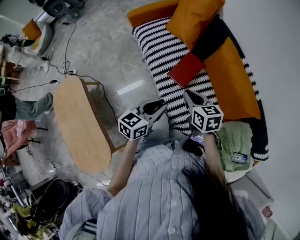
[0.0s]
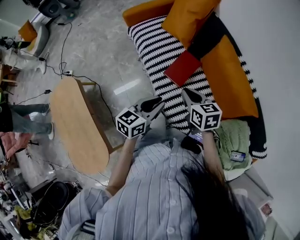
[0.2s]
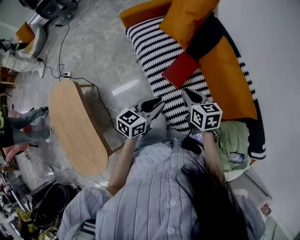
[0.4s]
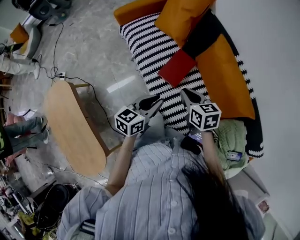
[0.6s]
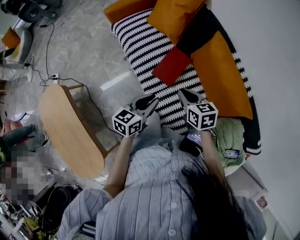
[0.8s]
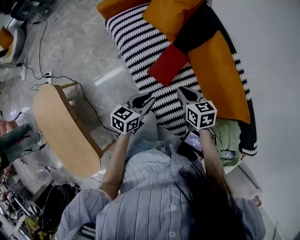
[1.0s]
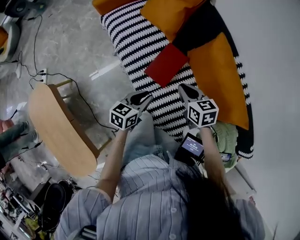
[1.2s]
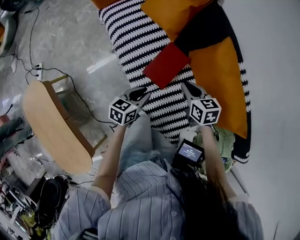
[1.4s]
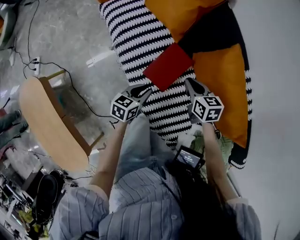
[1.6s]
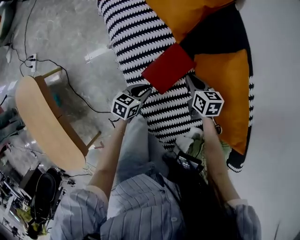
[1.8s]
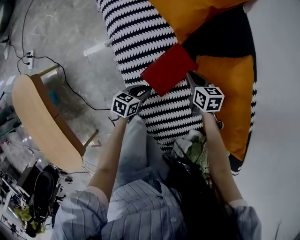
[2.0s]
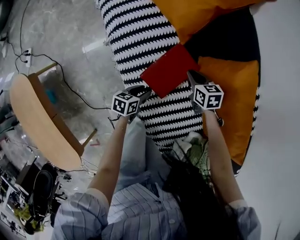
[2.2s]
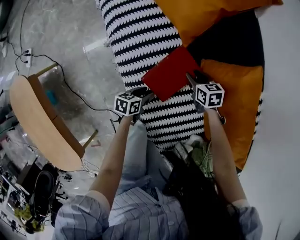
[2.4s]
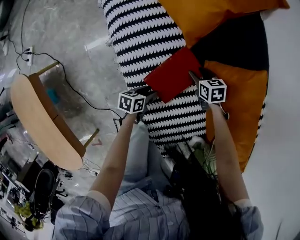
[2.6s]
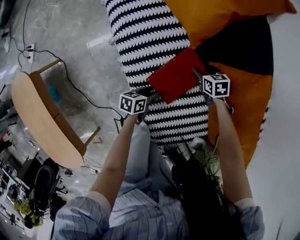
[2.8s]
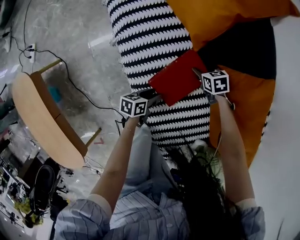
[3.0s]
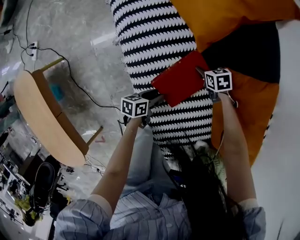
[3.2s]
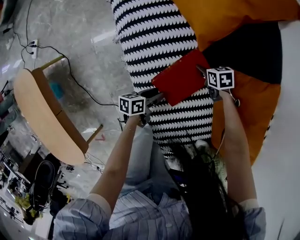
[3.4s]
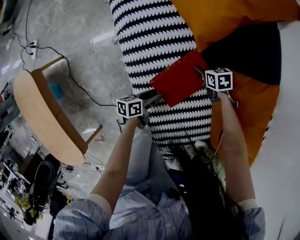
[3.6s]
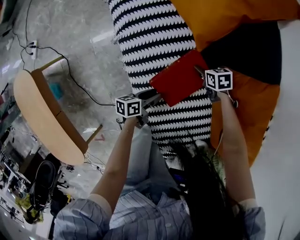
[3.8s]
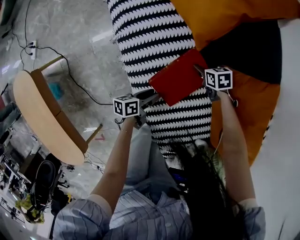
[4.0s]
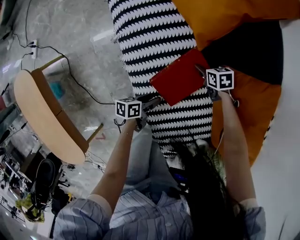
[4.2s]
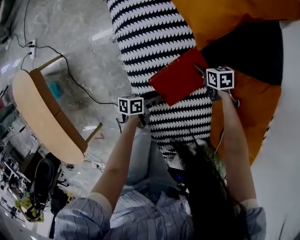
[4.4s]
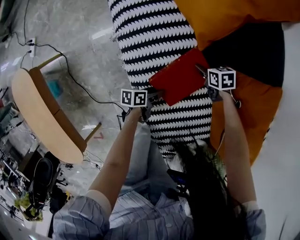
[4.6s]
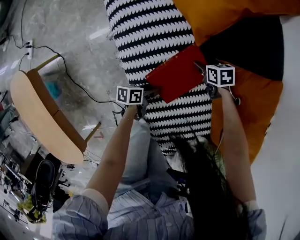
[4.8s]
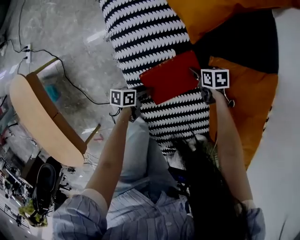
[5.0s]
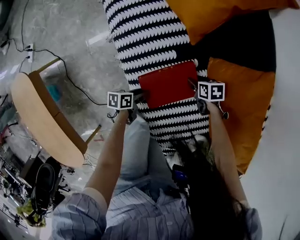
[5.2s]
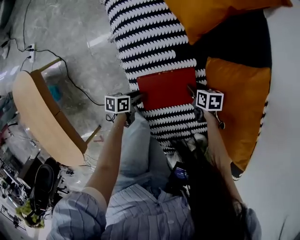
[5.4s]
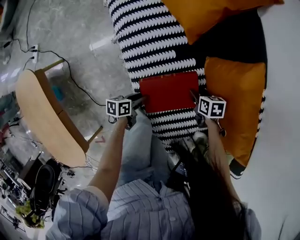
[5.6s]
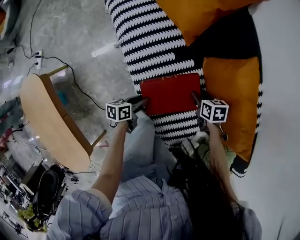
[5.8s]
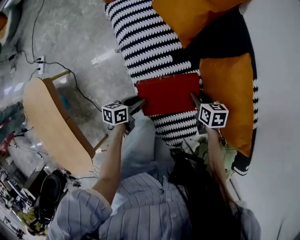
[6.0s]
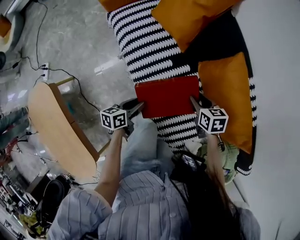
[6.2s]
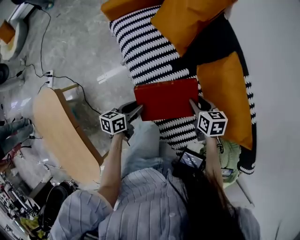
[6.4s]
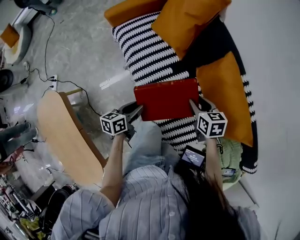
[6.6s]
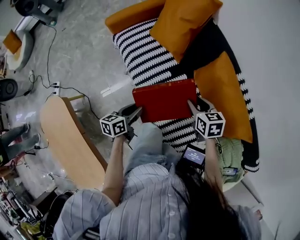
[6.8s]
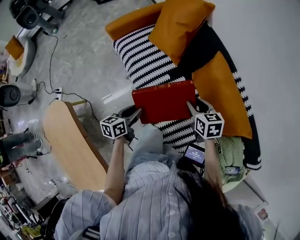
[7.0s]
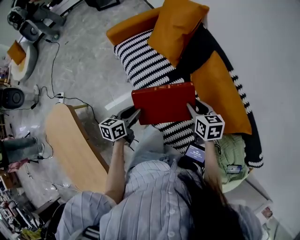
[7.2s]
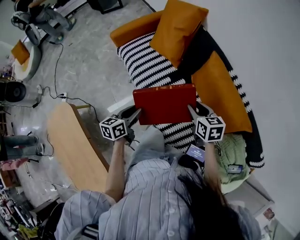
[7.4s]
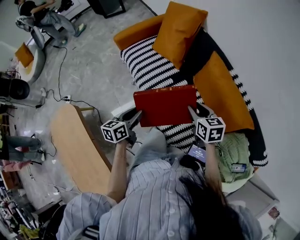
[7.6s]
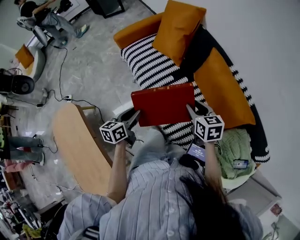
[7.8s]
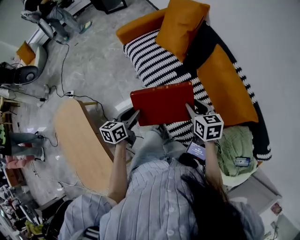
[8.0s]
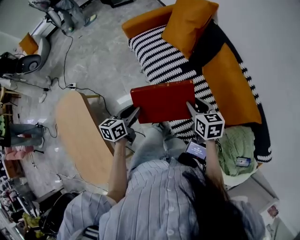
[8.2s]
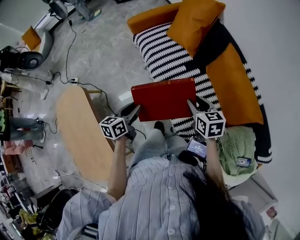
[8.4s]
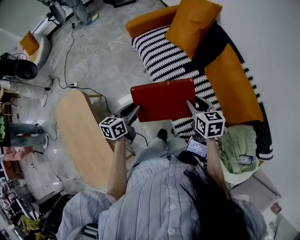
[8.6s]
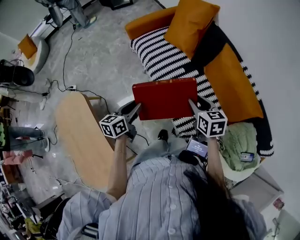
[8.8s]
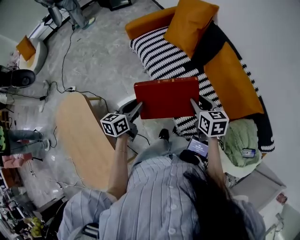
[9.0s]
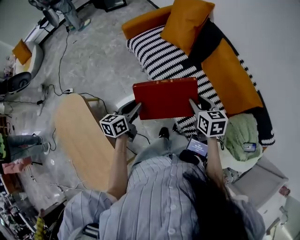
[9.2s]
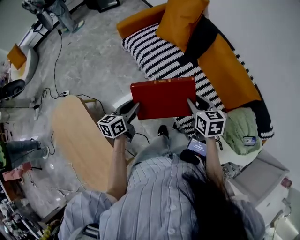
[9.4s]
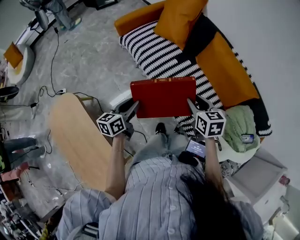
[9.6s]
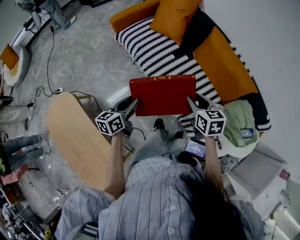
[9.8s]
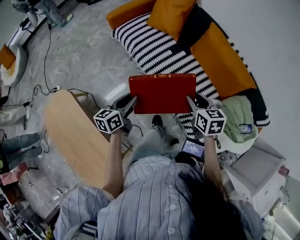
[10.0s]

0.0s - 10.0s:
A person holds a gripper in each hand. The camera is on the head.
0.0s - 1.4s: The left gripper heads downward and forward, covering roughly 25 cm. The right gripper is displaced forward and downward by approximately 25 cm.
1.4s - 2.8s: The right gripper travels downward and forward by approximately 30 cm, turns by approximately 20 degrees, and opens its fingers. Meanwhile the left gripper heads downward, covering roughly 25 cm, swivels some 30 degrees, and opens.
2.8s - 4.2s: The grippers stay close to where they were, moving slightly.
4.2s - 5.8s: The left gripper heads upward, covering some 10 cm. The right gripper ends up approximately 20 cm from where it was.
5.8s - 7.2s: Both grippers travel together upward, about 25 cm. The left gripper rotates roughly 30 degrees; the right gripper turns by roughly 30 degrees.
7.2s - 8.6s: Both grippers move backward and to the left, about 15 cm.
8.6s - 10.0s: The right gripper goes approximately 10 cm backward; the left gripper shifts by some 5 cm.

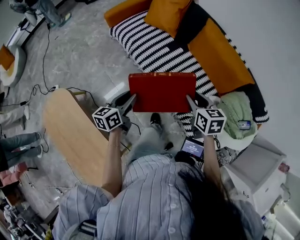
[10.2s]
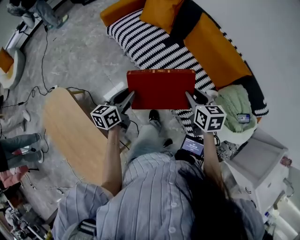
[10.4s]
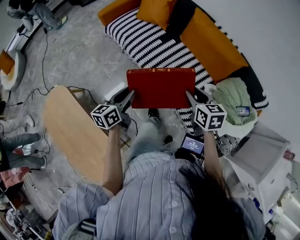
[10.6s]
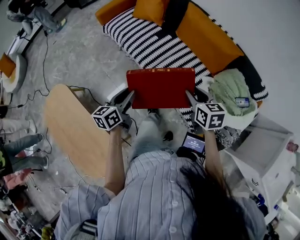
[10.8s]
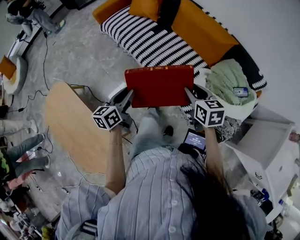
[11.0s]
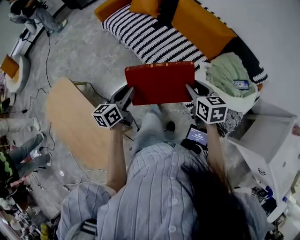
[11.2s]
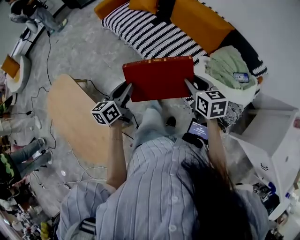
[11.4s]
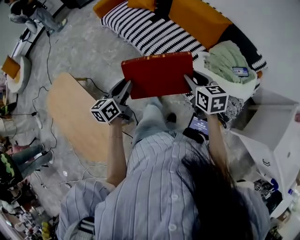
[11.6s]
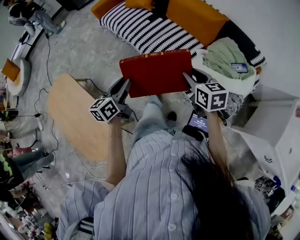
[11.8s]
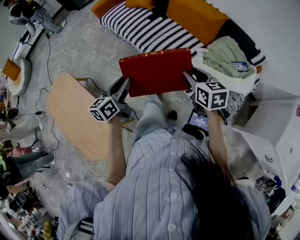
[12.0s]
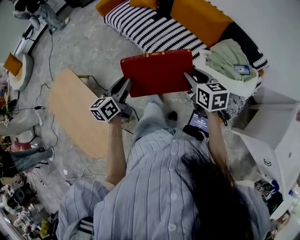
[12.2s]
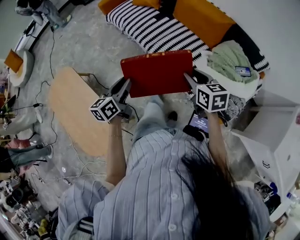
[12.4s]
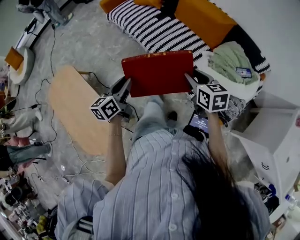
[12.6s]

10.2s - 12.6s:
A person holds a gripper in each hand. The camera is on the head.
10.2s - 11.4s: Both grippers move backward and to the right, about 25 cm.
11.4s - 12.6s: The grippers move only a little.

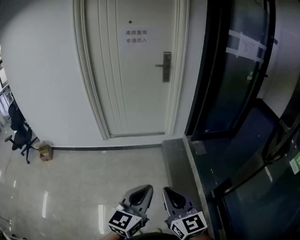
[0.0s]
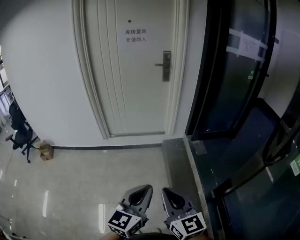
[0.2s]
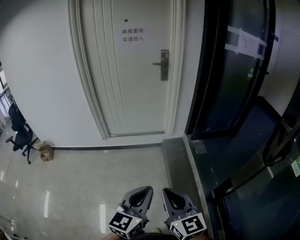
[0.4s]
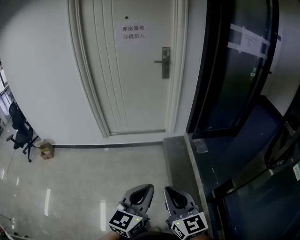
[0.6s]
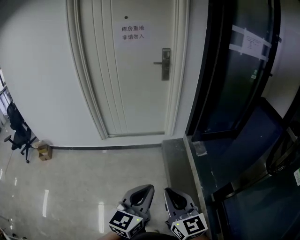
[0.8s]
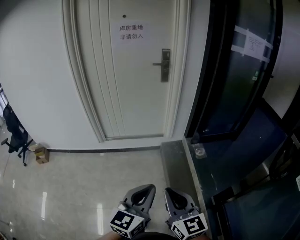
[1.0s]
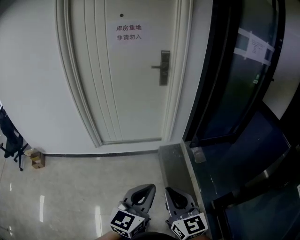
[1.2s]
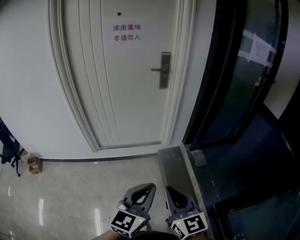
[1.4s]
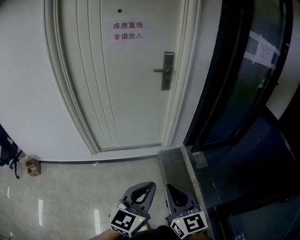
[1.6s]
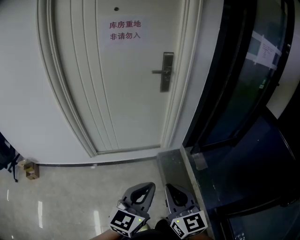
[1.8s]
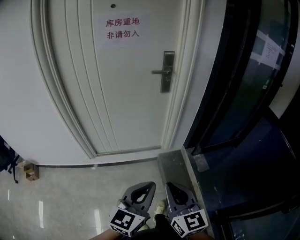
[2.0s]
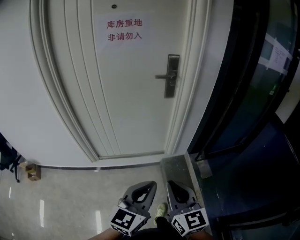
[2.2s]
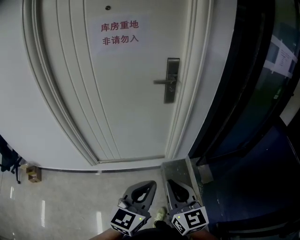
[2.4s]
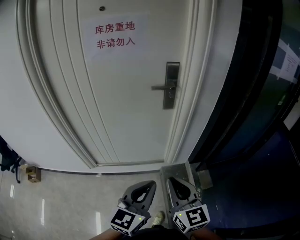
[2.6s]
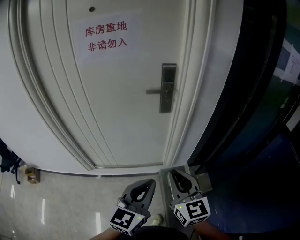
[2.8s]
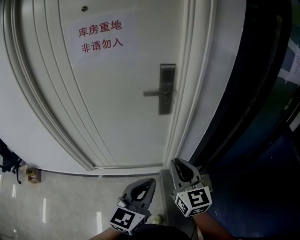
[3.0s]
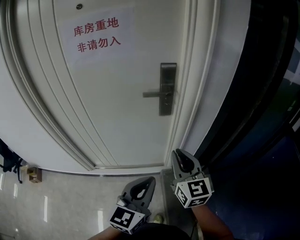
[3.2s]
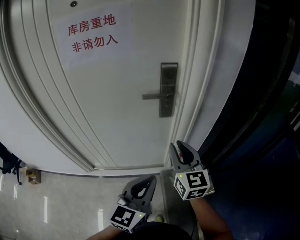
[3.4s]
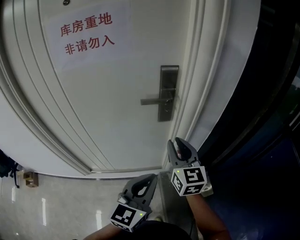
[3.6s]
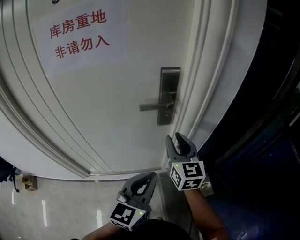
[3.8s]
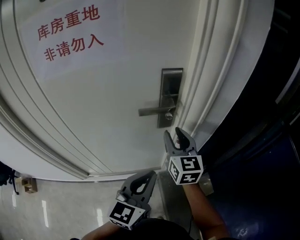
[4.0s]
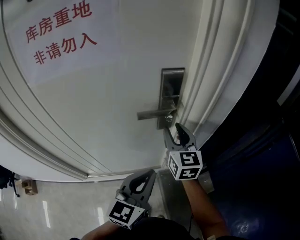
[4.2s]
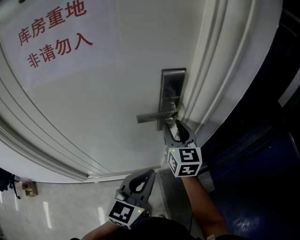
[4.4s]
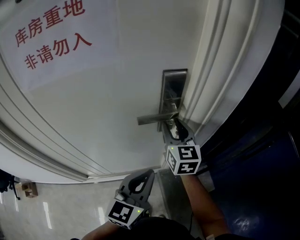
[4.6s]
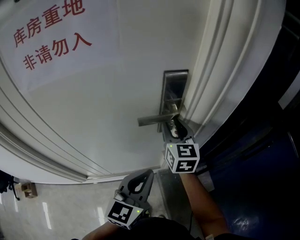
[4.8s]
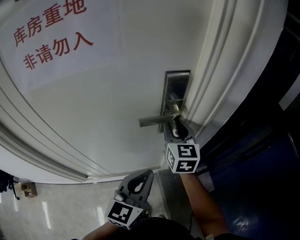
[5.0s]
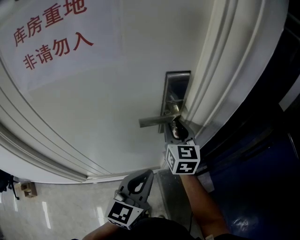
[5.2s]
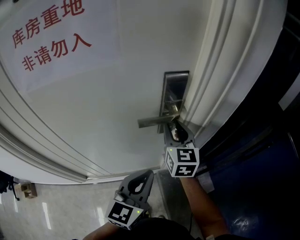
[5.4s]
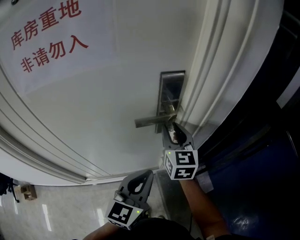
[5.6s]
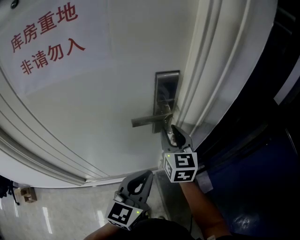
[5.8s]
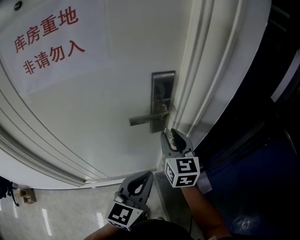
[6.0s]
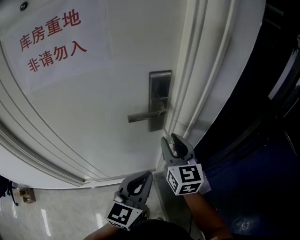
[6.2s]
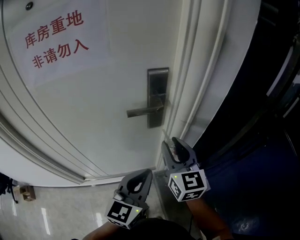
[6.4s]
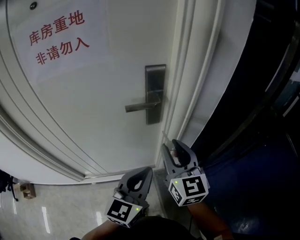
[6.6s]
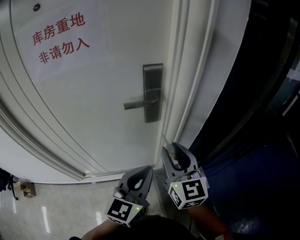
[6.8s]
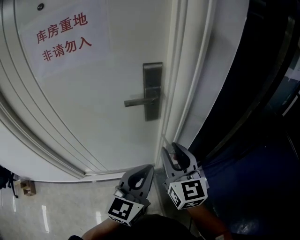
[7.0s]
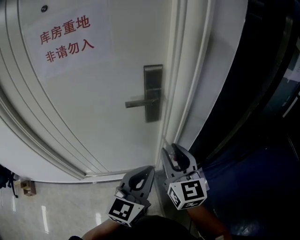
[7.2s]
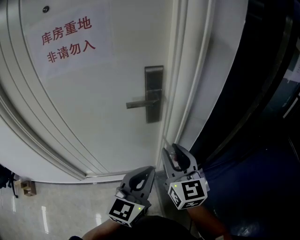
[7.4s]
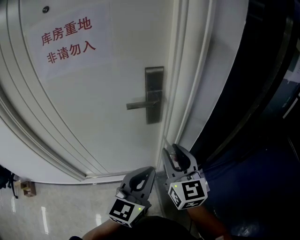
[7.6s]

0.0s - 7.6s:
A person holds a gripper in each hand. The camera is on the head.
0.0s - 1.6s: The grippers both shift forward by about 30 cm.
1.6s - 3.0s: The grippers both shift forward by roughly 35 cm.
3.0s - 4.6s: Both grippers travel together forward, approximately 30 cm. The right gripper opens up.
4.6s - 6.0s: The right gripper ends up approximately 5 cm from where it was.
6.0s - 7.6s: The left gripper travels backward by some 5 cm. The right gripper shifts some 15 cm backward.

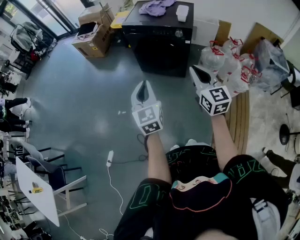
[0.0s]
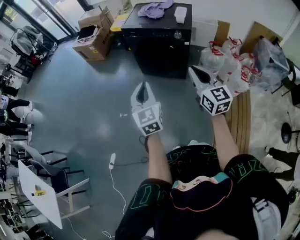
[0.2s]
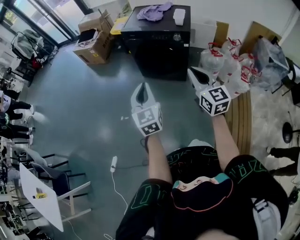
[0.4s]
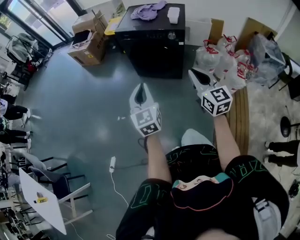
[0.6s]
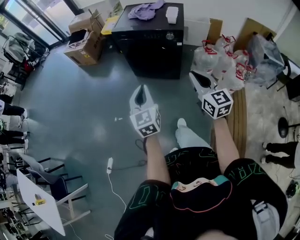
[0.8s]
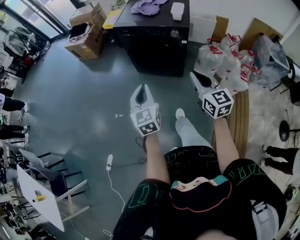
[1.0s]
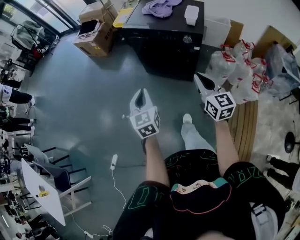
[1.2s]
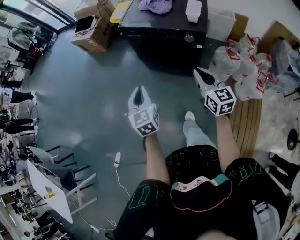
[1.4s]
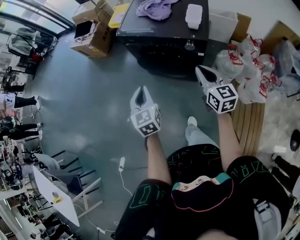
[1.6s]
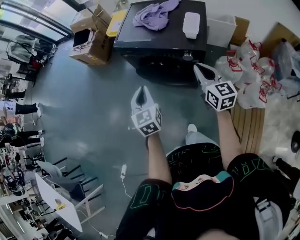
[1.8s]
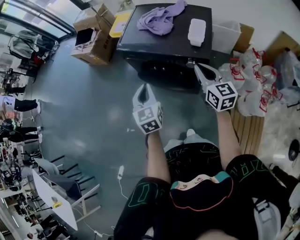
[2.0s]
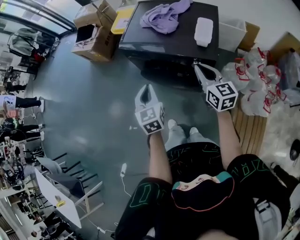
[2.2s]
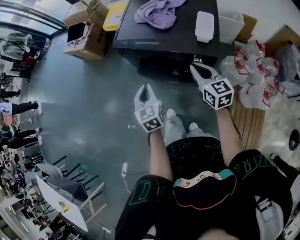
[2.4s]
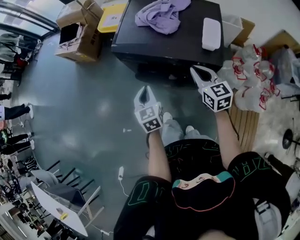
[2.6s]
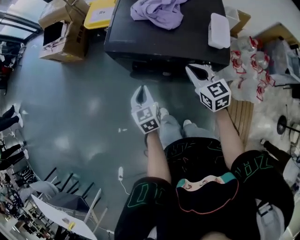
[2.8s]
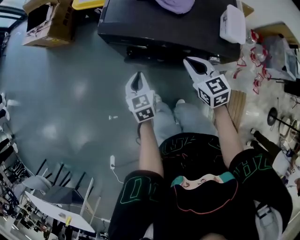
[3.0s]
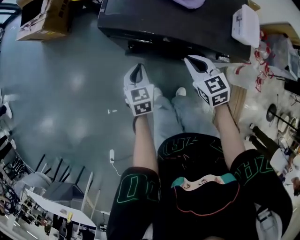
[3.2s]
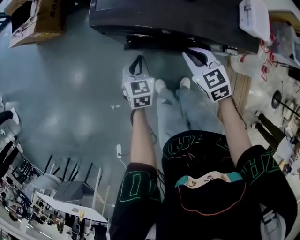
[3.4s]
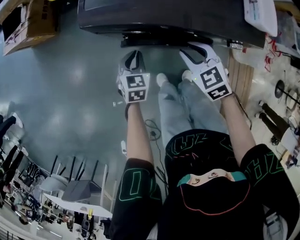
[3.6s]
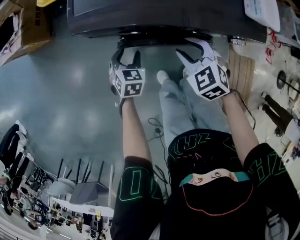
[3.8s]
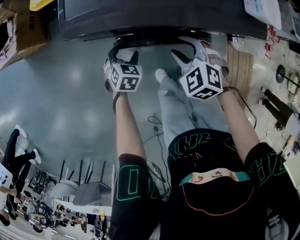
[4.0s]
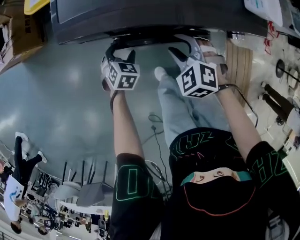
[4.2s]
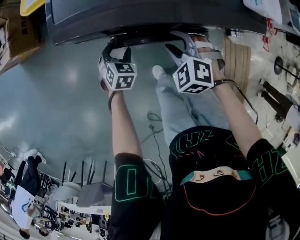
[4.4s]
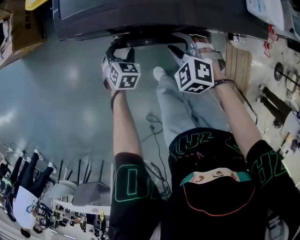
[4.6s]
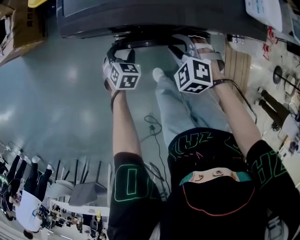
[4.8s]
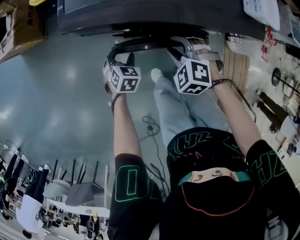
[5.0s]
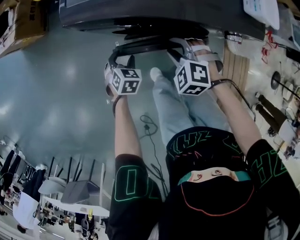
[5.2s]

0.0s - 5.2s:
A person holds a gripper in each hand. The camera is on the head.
0.0s - 1.8s: The left gripper goes roughly 35 cm forward, while the right gripper moves forward and to the right, approximately 35 cm.
1.8s - 3.4s: The right gripper goes approximately 35 cm downward, forward and to the left, and tilts its fingers some 30 degrees downward. The left gripper moves downward and forward, approximately 40 cm, and rotates about 30 degrees.
3.4s - 5.2s: The two grippers go roughly 10 cm downward. The left gripper changes its angle by approximately 30 degrees, and opens up, while the right gripper rotates about 40 degrees, and opens up.
